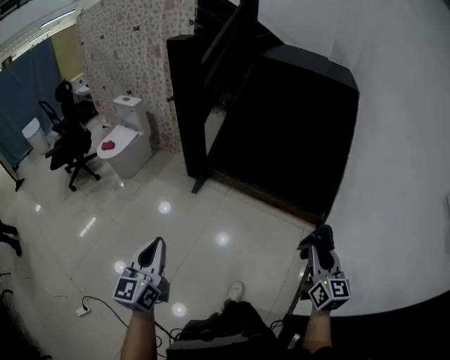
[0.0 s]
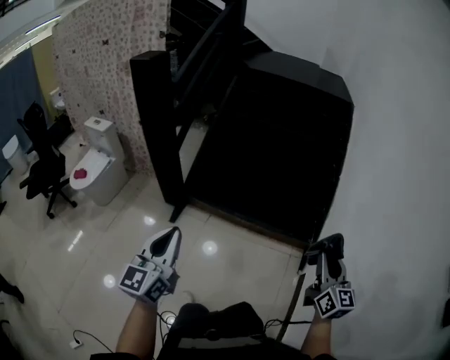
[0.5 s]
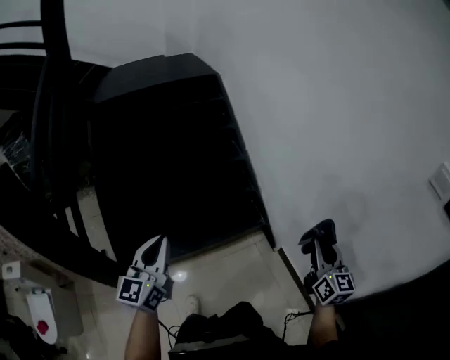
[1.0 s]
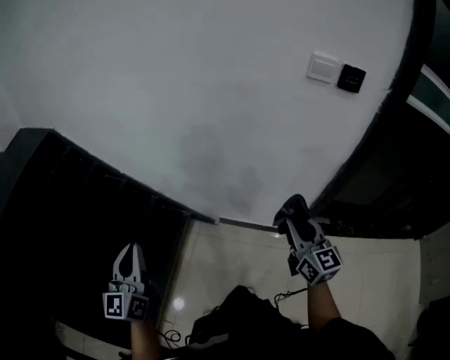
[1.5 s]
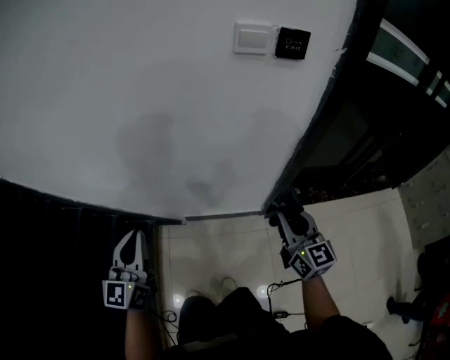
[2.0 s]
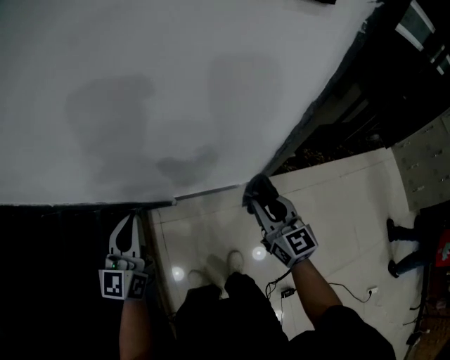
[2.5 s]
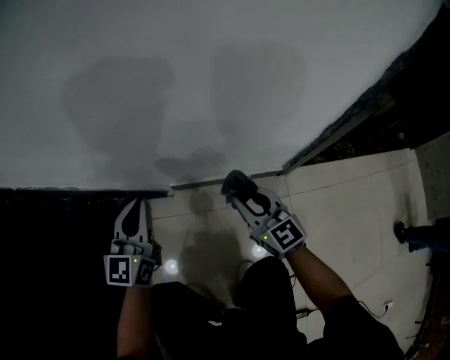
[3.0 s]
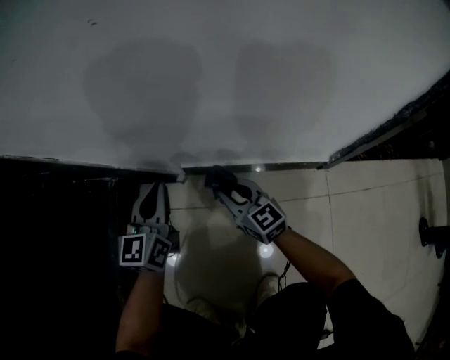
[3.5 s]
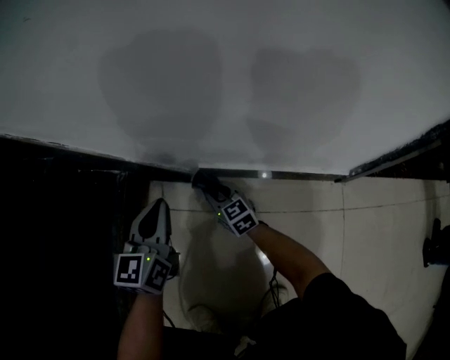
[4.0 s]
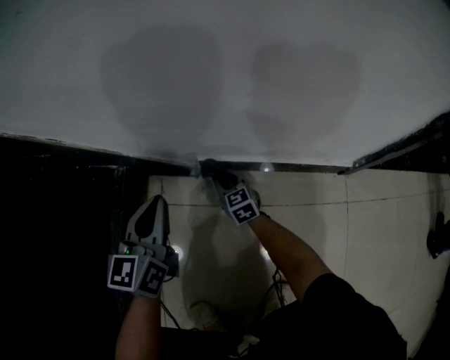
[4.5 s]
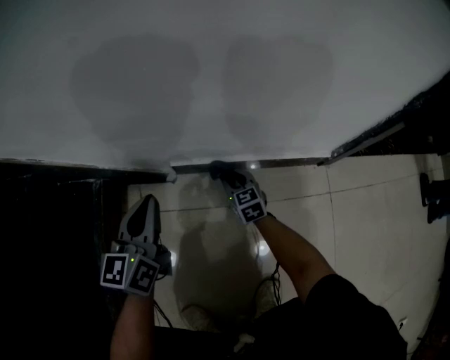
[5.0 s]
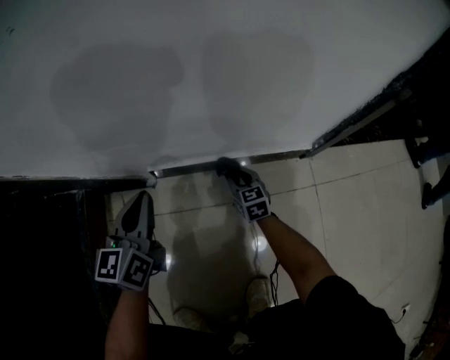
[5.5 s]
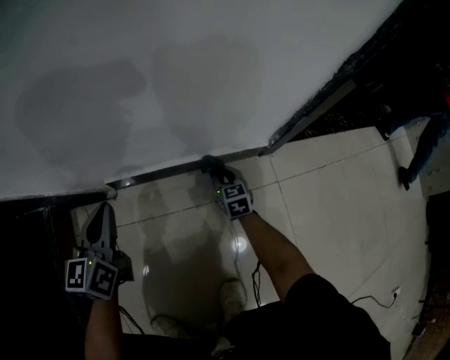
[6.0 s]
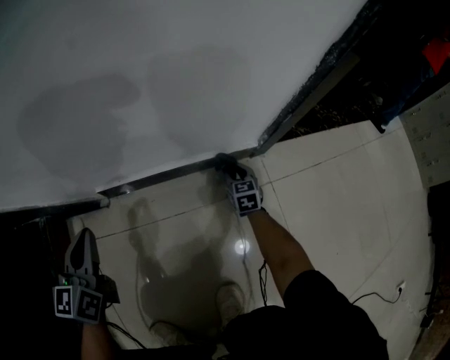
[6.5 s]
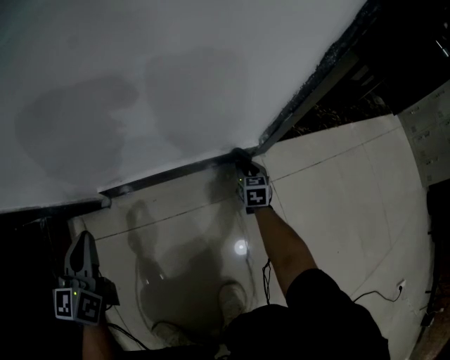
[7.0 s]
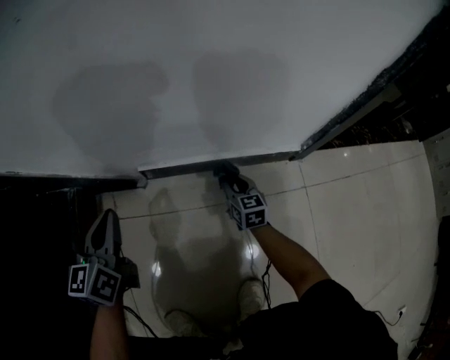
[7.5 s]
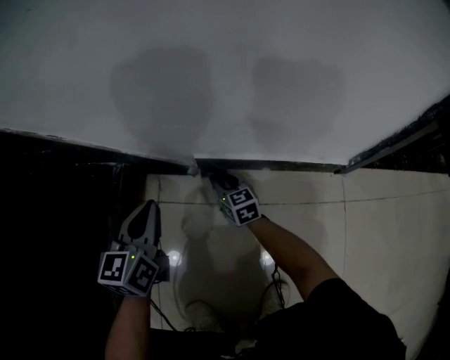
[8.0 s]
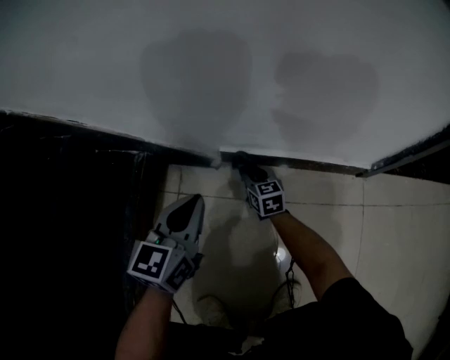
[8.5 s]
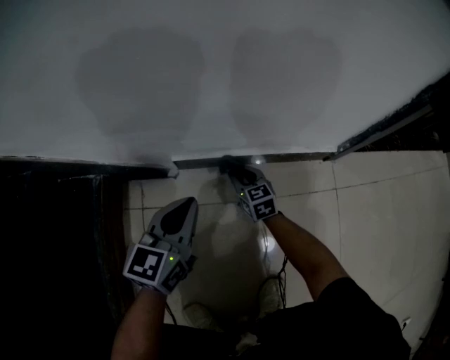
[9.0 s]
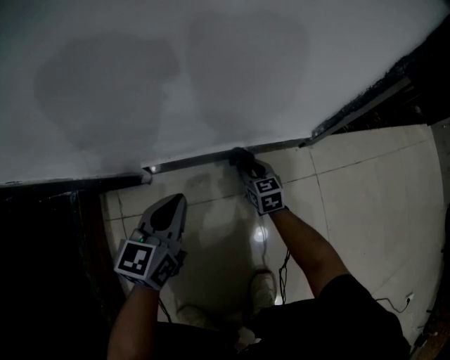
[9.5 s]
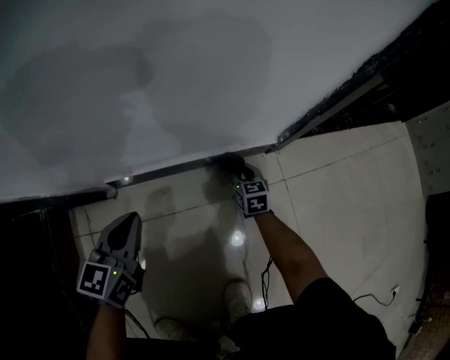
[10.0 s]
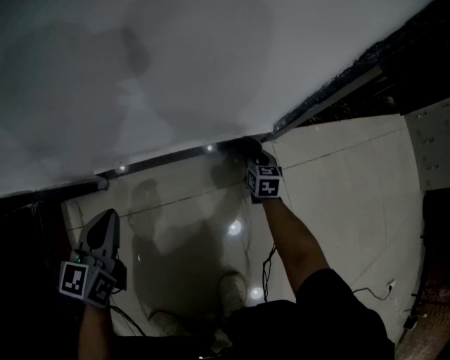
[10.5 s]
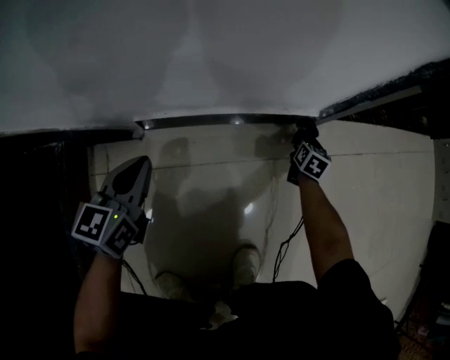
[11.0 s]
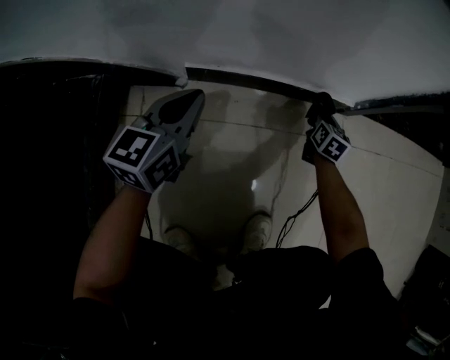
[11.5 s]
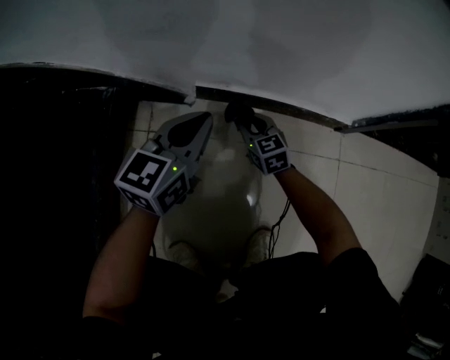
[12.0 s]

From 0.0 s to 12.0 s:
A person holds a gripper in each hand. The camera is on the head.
From 0.0 s to 2.0 s: The left gripper shifts by approximately 70 cm, and rotates about 110 degrees; the right gripper rotates about 100 degrees.
From 2.0 s to 4.0 s: The grippers both shift downward by about 80 cm. The right gripper swivels approximately 40 degrees, while the left gripper changes its angle by roughly 20 degrees.
From 4.0 s to 6.0 s: The left gripper moves about 15 cm, while the right gripper moves roughly 35 cm, and rotates roughly 40 degrees.
From 6.0 s to 8.0 s: The right gripper moves about 30 cm, and changes its angle by about 30 degrees; the left gripper ends up about 15 cm from where it was.
From 8.0 s to 10.0 s: The left gripper moves approximately 20 cm, and changes its angle by approximately 30 degrees; the right gripper moves approximately 35 cm, and changes its angle by roughly 30 degrees.
From 10.0 s to 12.0 s: The right gripper ends up some 30 cm from where it was, and swivels about 40 degrees; the left gripper ends up roughly 5 cm from where it was.

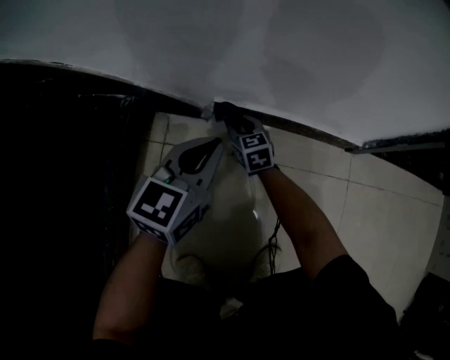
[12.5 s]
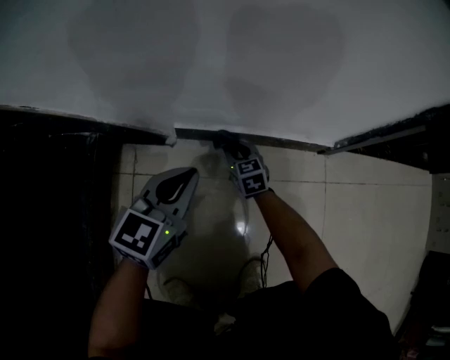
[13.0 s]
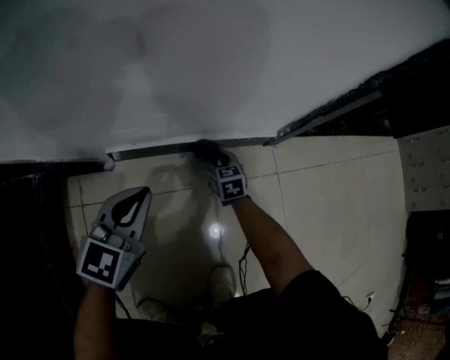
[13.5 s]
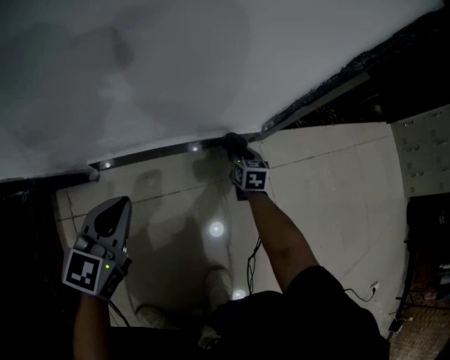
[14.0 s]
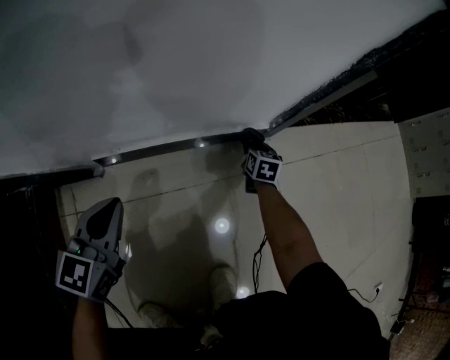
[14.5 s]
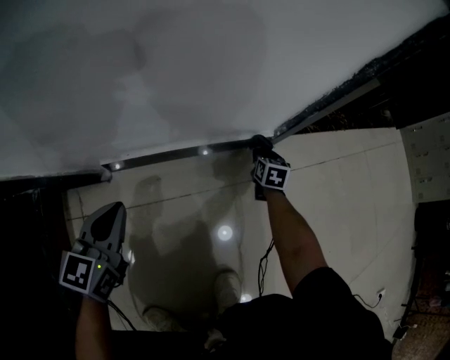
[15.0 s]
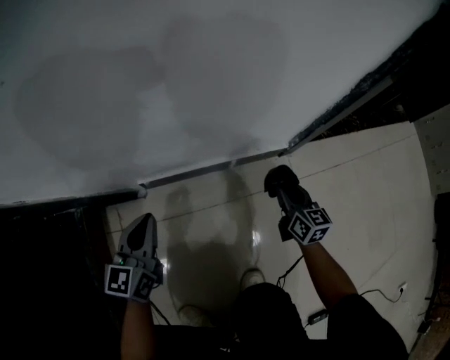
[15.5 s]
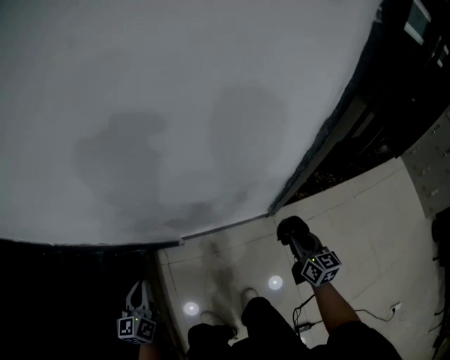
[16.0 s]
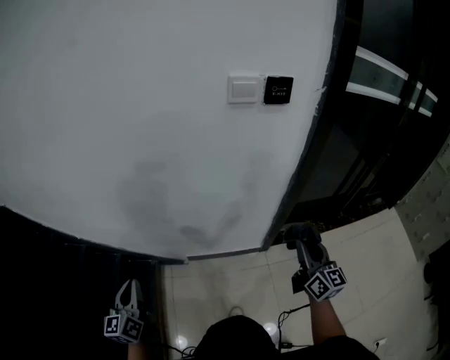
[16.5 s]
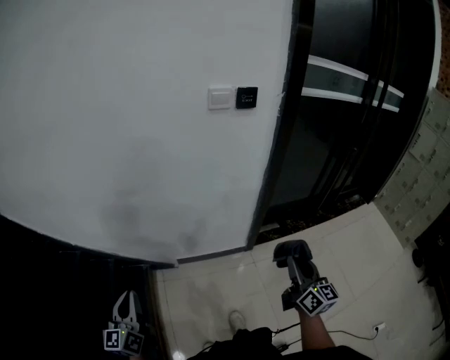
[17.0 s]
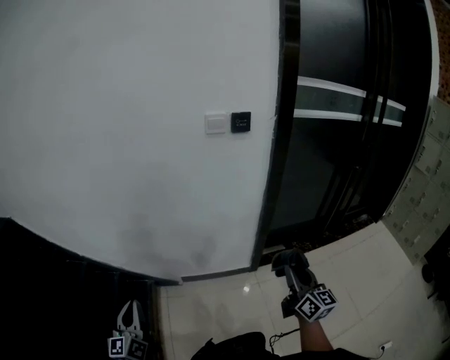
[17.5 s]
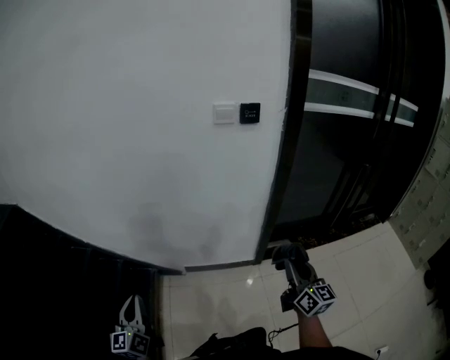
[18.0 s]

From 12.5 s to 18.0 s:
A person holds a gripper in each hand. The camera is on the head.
From 12.5 s to 14.5 s: The left gripper moves approximately 10 cm. The right gripper changes place by approximately 50 cm, and changes its angle by some 50 degrees.
From 14.5 s to 16.0 s: The right gripper travels upward and backward by approximately 50 cm, and swivels approximately 30 degrees, while the left gripper heads to the left, upward and backward, covering approximately 30 cm, and swivels roughly 30 degrees.
From 16.0 s to 18.0 s: The right gripper travels to the left by some 15 cm, and swivels some 20 degrees. Meanwhile the left gripper moves downward and to the left, about 25 cm, and changes its angle by some 30 degrees.

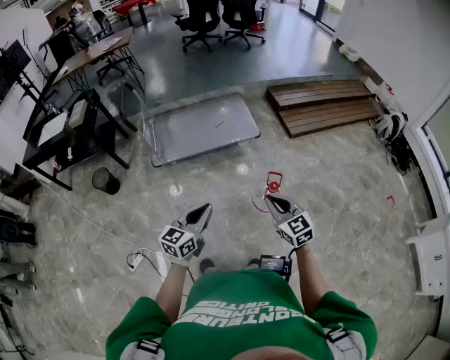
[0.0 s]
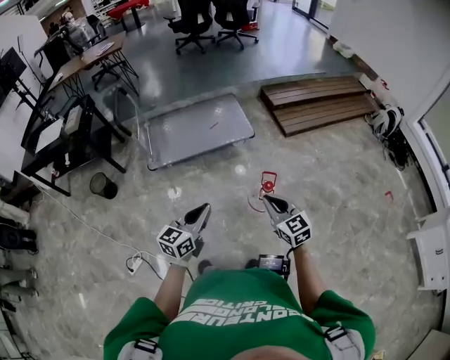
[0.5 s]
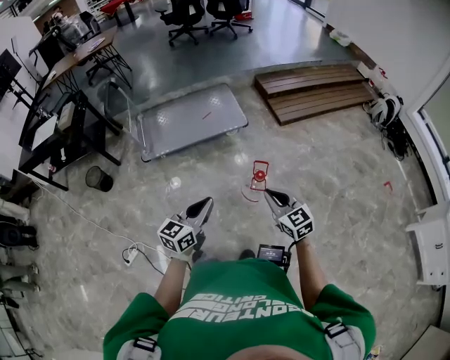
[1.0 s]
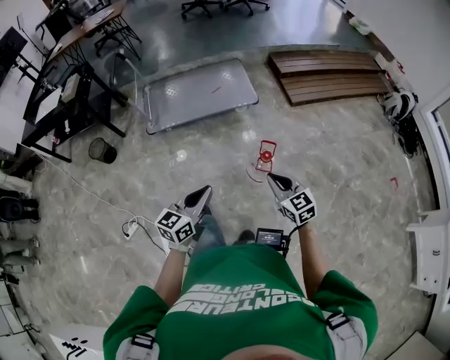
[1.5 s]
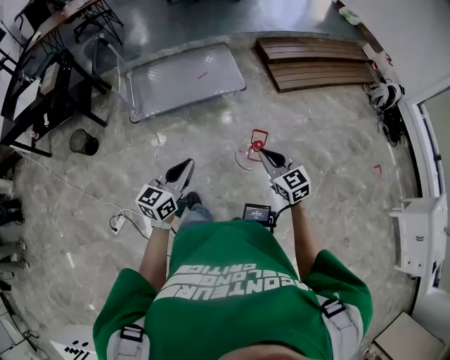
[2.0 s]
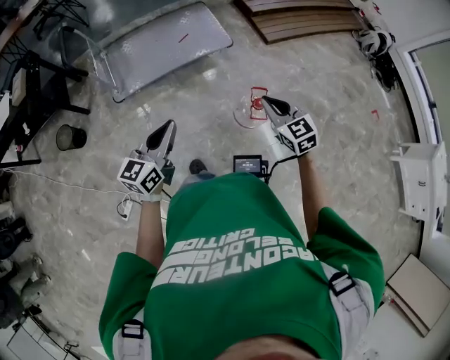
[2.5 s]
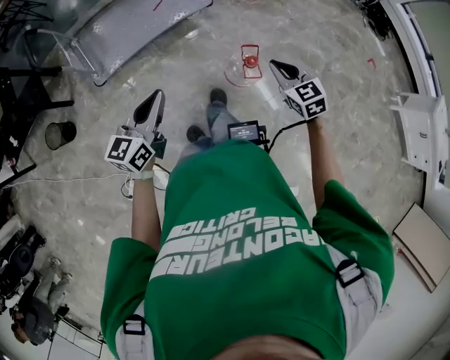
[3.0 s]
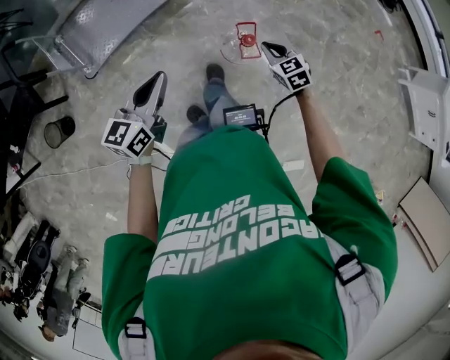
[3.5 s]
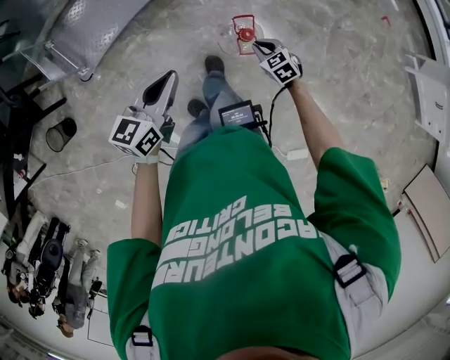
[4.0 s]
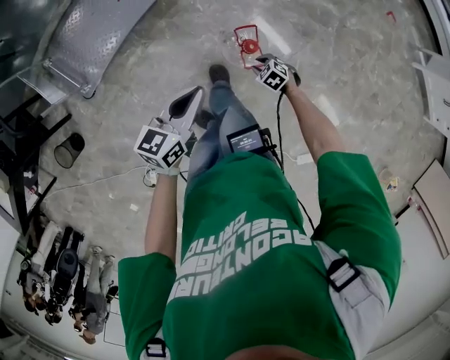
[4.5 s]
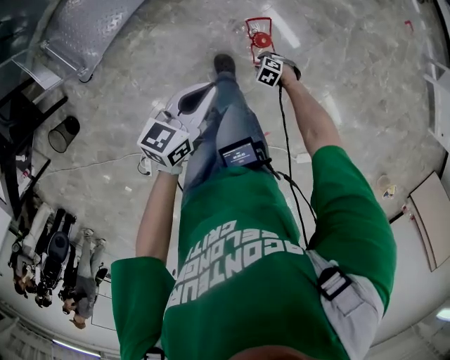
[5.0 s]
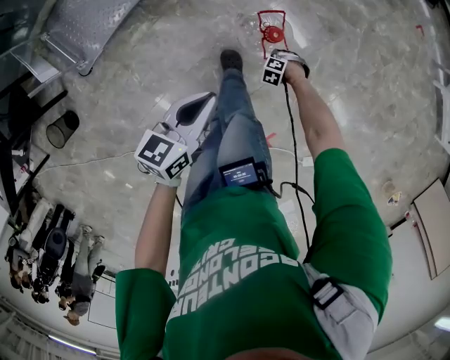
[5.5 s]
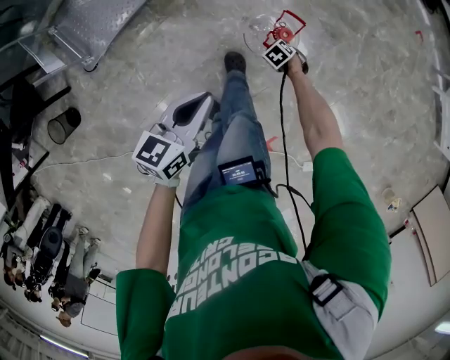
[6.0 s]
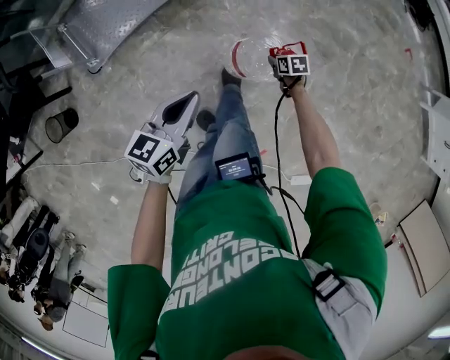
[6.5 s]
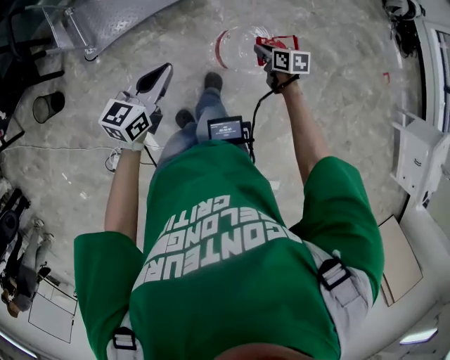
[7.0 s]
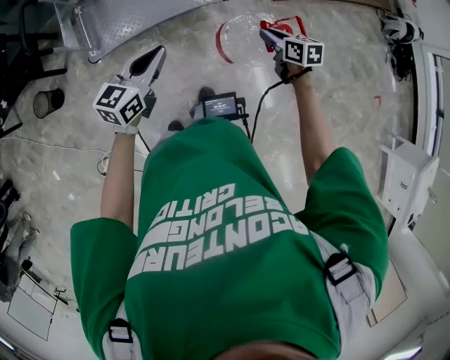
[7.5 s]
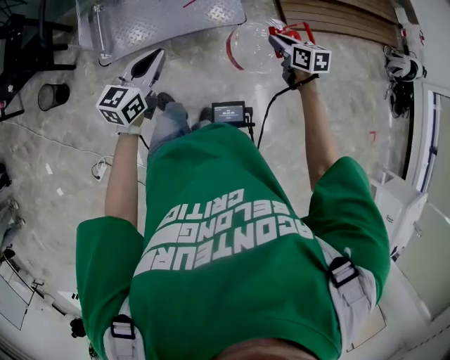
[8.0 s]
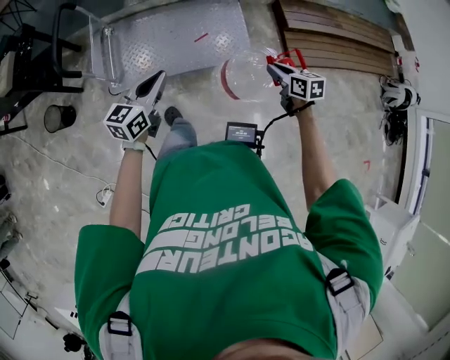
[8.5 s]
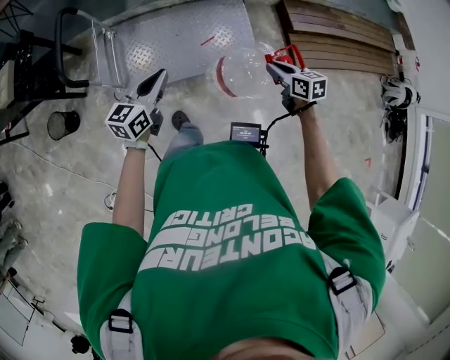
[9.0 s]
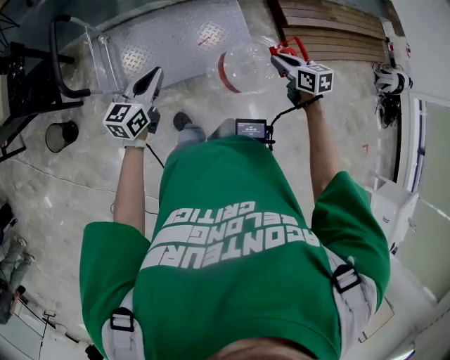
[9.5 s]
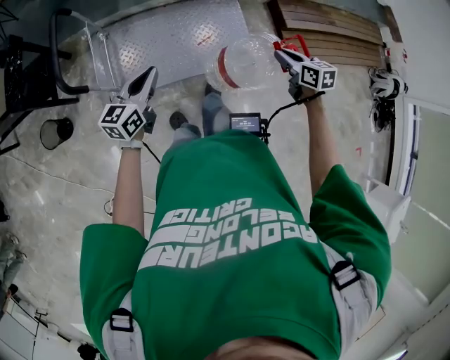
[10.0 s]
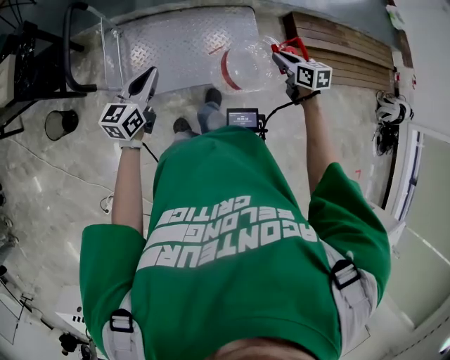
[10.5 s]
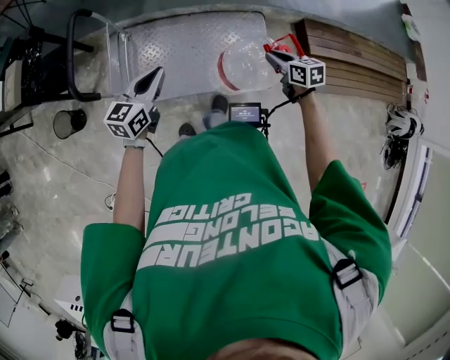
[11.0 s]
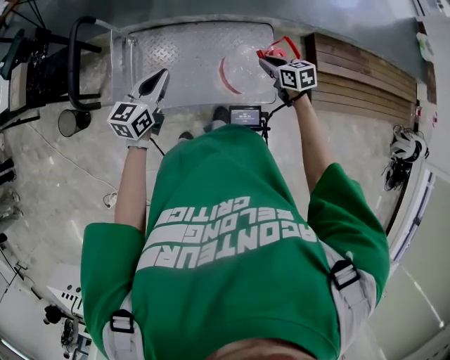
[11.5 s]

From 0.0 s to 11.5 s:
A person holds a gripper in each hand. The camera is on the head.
From 0.0 s to 2.0 s: The left gripper moves roughly 10 cm to the right and comes back; the right gripper shifts roughly 5 cm forward.
From 2.0 s to 4.0 s: The left gripper travels forward by roughly 15 cm, and changes its angle by some 30 degrees. The right gripper is displaced downward and forward by about 30 cm, and turns by roughly 30 degrees.
From 4.0 s to 6.0 s: The left gripper shifts about 10 cm downward; the right gripper goes some 25 cm downward, changes its angle by roughly 30 degrees, and opens, then closes again.
From 6.0 s to 7.5 s: The right gripper goes roughly 40 cm upward, and tips its fingers upward by roughly 40 degrees. The left gripper ends up roughly 25 cm from where it was, and turns by approximately 30 degrees.
From 7.5 s to 9.5 s: The two grippers go approximately 30 cm forward and to the left.
From 9.5 s to 11.5 s: The right gripper goes roughly 25 cm forward, while the left gripper shifts about 15 cm forward.
